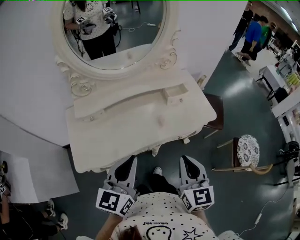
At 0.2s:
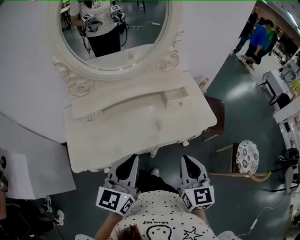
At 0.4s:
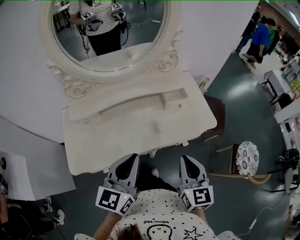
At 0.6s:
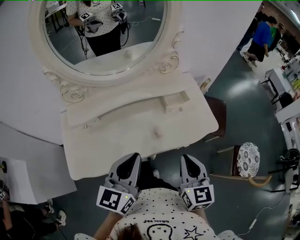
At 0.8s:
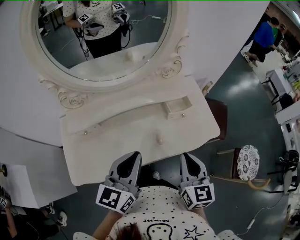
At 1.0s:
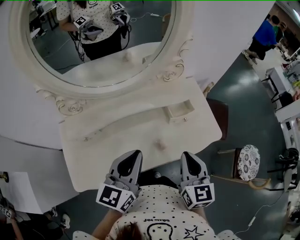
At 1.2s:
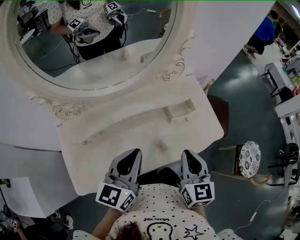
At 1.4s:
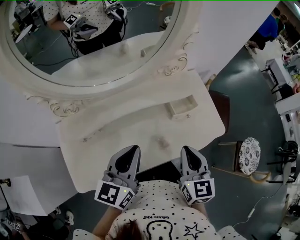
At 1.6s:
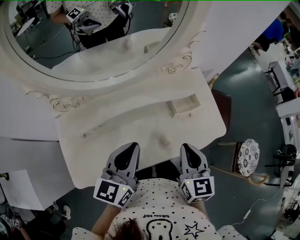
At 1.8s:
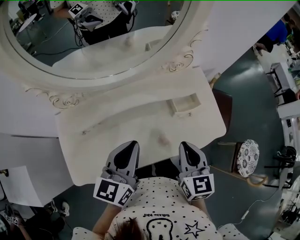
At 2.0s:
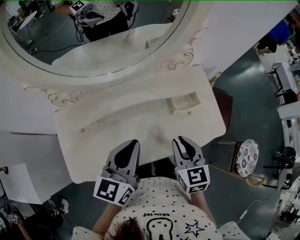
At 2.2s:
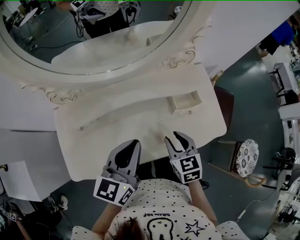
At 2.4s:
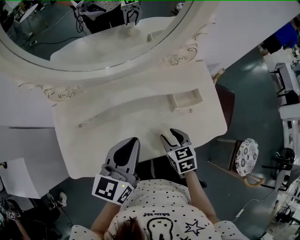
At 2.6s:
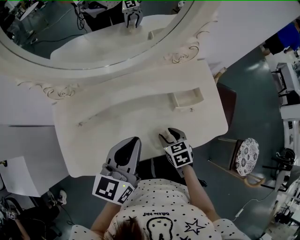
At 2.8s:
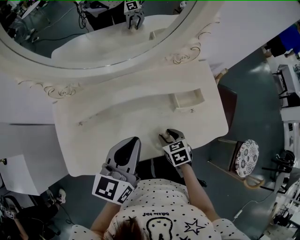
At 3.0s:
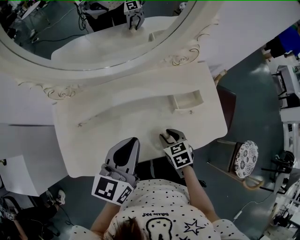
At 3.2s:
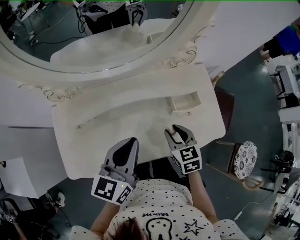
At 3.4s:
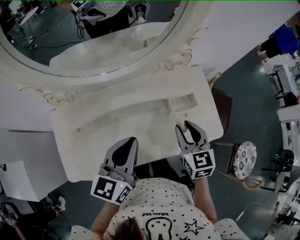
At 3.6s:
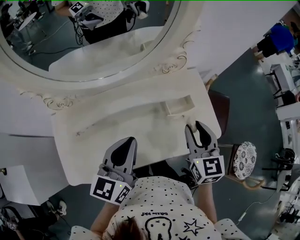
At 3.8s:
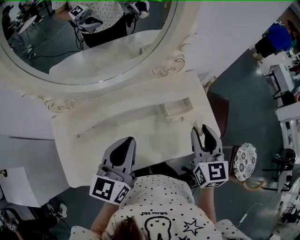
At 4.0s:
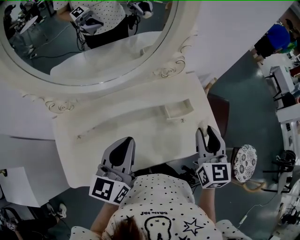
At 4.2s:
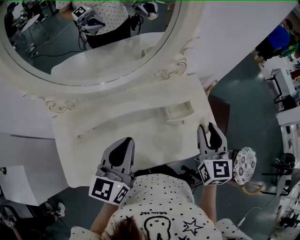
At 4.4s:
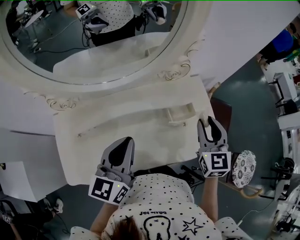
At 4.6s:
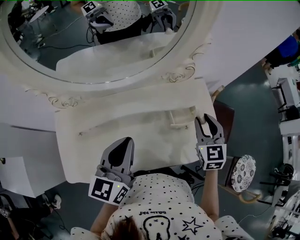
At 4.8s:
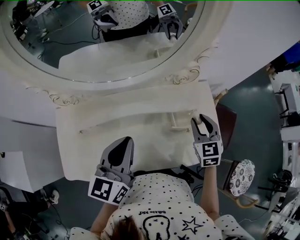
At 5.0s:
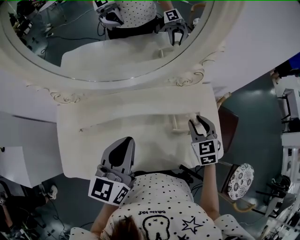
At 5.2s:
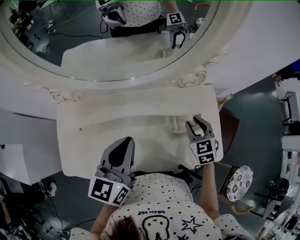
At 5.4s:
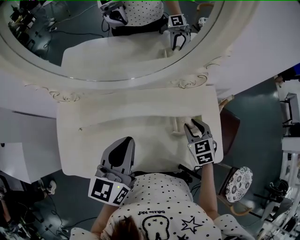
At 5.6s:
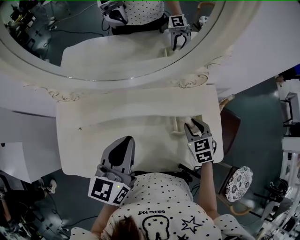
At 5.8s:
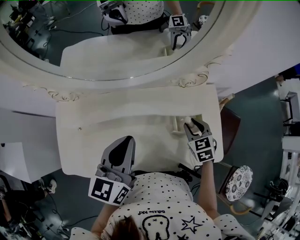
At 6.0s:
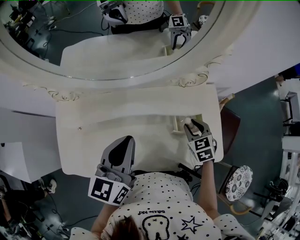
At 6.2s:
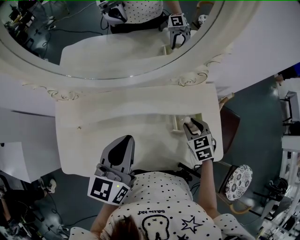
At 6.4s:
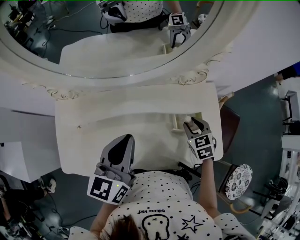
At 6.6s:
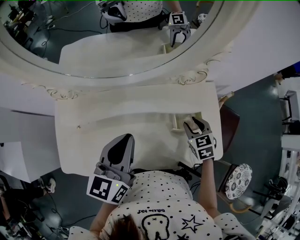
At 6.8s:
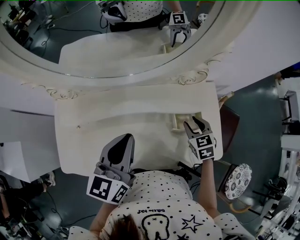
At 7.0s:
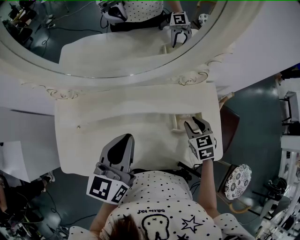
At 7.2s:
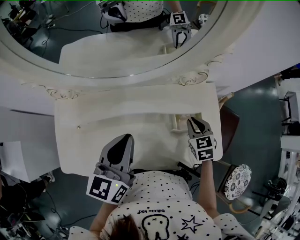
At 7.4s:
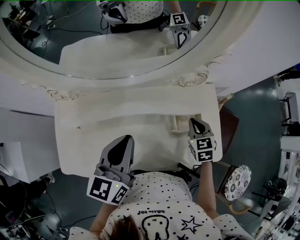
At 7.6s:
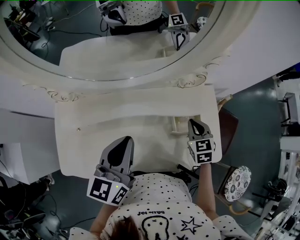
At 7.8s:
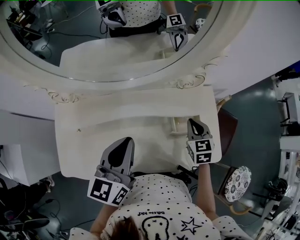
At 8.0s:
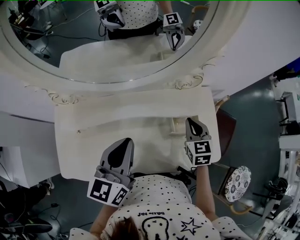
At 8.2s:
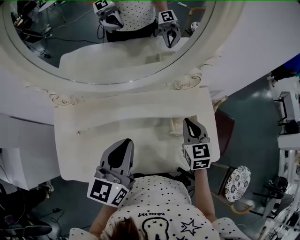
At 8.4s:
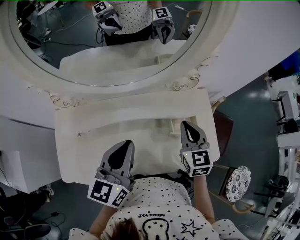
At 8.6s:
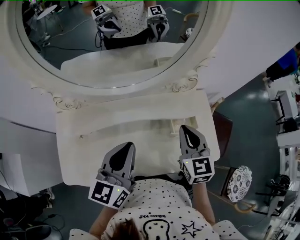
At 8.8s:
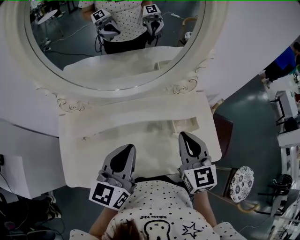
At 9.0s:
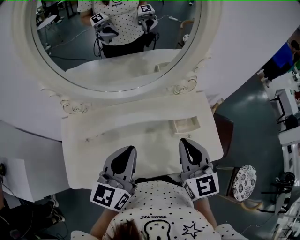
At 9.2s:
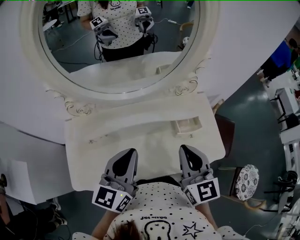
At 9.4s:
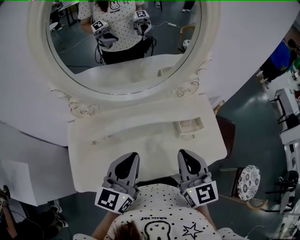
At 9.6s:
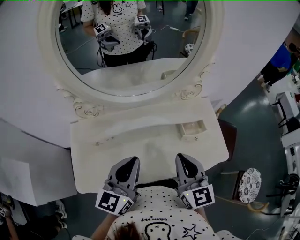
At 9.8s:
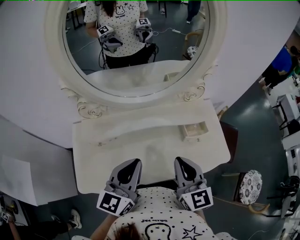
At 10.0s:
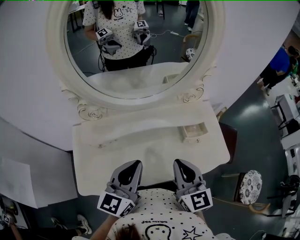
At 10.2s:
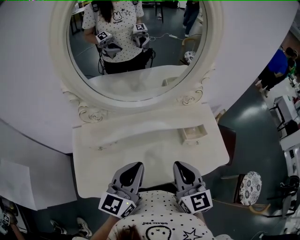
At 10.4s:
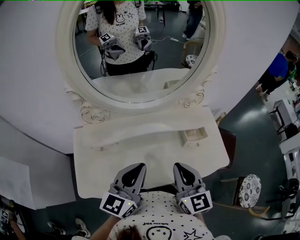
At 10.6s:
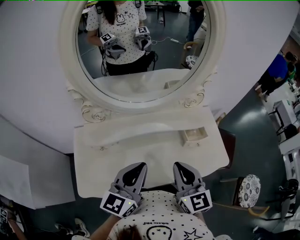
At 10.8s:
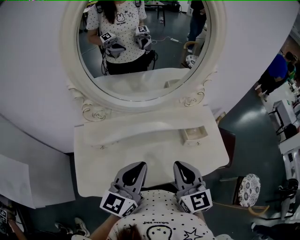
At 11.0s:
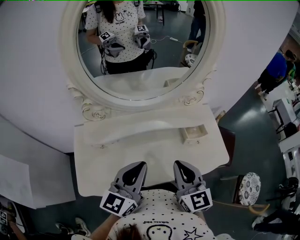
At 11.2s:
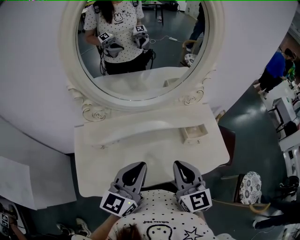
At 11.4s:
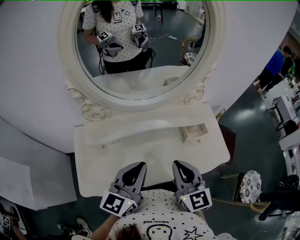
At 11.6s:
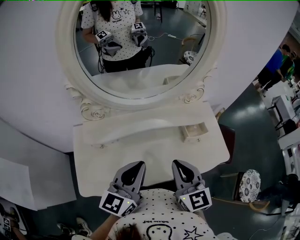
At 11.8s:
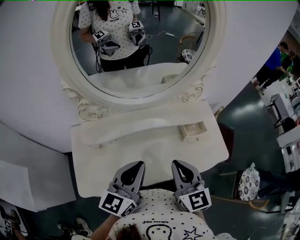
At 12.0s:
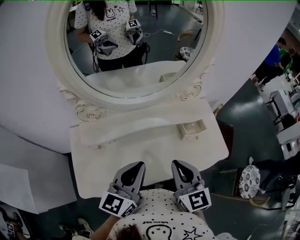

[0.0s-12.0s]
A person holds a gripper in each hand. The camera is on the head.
0.0s to 1.6s: The two grippers go approximately 20 cm forward.
1.6s to 3.0s: The right gripper is displaced downward by some 20 cm, swivels approximately 40 degrees, and opens.
3.0s to 4.4s: The right gripper goes some 25 cm upward, to the right and forward, and tips its fingers upward by about 30 degrees.
4.4s to 6.0s: The right gripper is displaced downward by some 20 cm, and swivels some 40 degrees.
6.0s to 7.6s: The right gripper closes up.
7.6s to 9.0s: The right gripper shifts some 25 cm upward, backward and to the left, and swivels about 30 degrees. The left gripper heads backward, covering approximately 5 cm.
9.0s to 10.4s: The left gripper shifts roughly 5 cm backward, while the right gripper shifts roughly 10 cm backward and to the left.
10.4s to 12.0s: The grippers stay close to where they were, moving slightly.

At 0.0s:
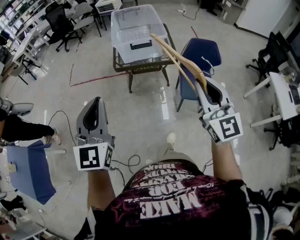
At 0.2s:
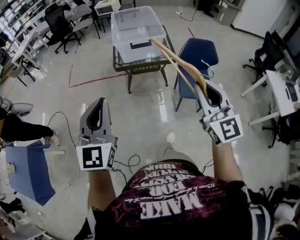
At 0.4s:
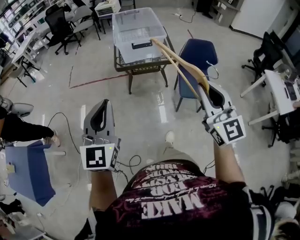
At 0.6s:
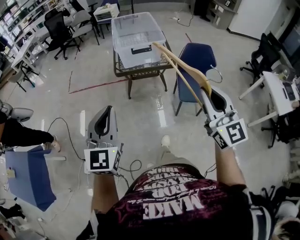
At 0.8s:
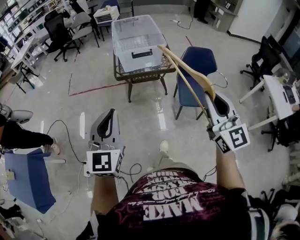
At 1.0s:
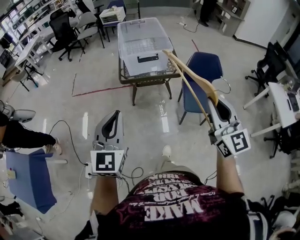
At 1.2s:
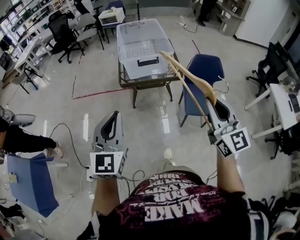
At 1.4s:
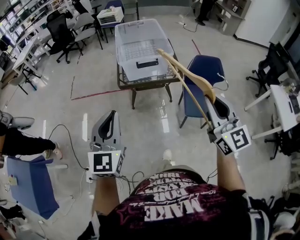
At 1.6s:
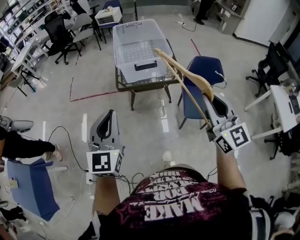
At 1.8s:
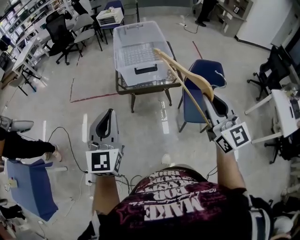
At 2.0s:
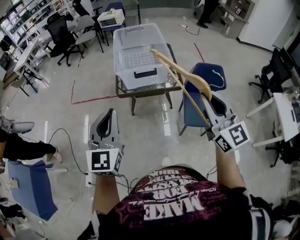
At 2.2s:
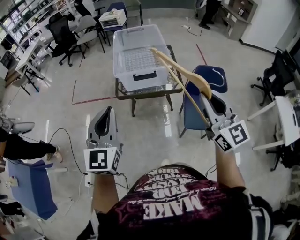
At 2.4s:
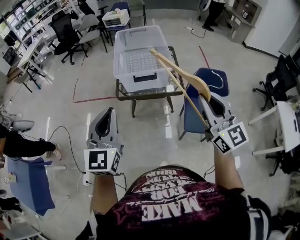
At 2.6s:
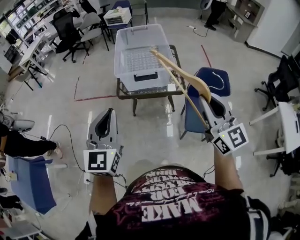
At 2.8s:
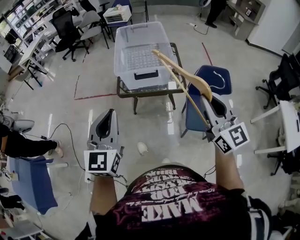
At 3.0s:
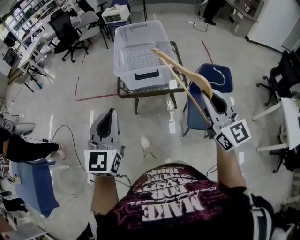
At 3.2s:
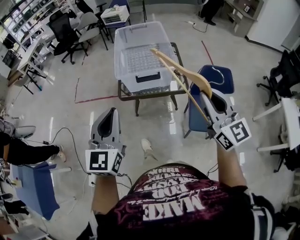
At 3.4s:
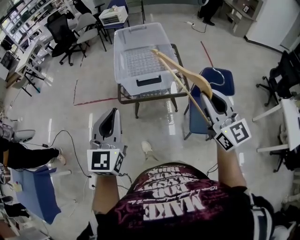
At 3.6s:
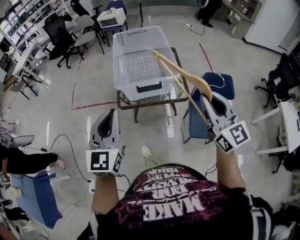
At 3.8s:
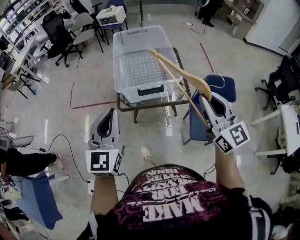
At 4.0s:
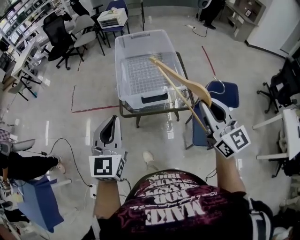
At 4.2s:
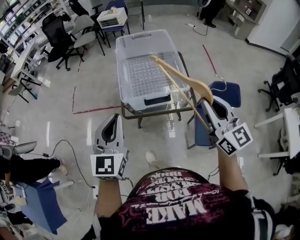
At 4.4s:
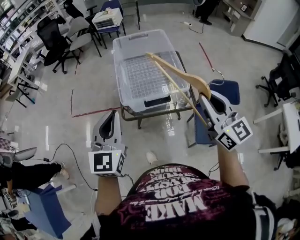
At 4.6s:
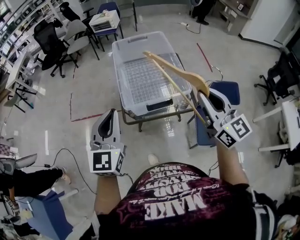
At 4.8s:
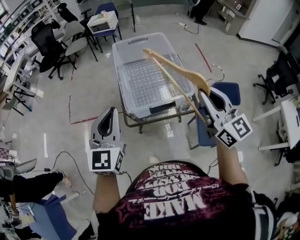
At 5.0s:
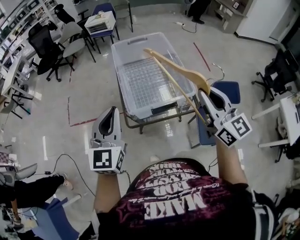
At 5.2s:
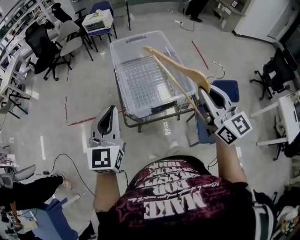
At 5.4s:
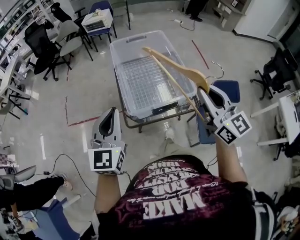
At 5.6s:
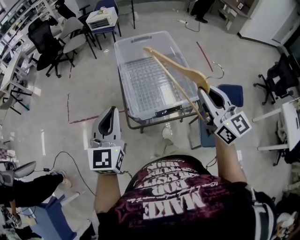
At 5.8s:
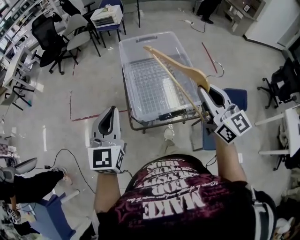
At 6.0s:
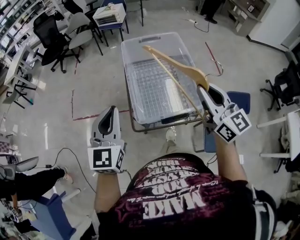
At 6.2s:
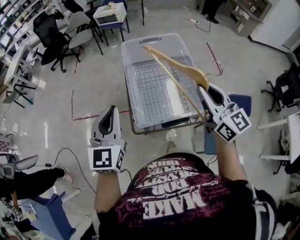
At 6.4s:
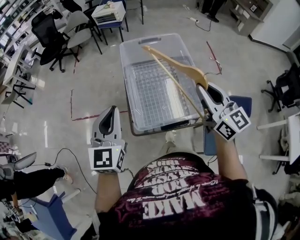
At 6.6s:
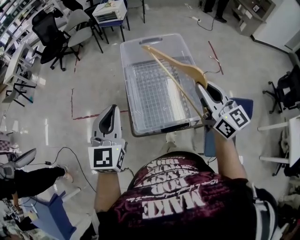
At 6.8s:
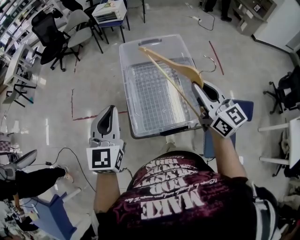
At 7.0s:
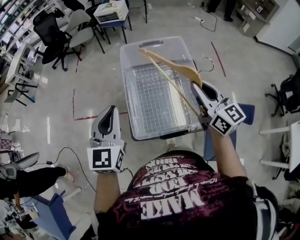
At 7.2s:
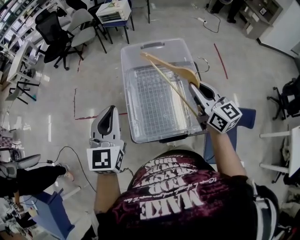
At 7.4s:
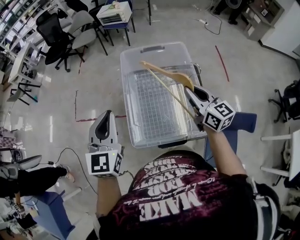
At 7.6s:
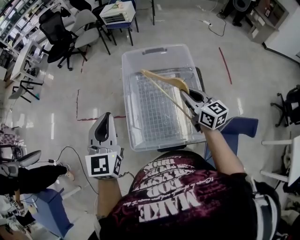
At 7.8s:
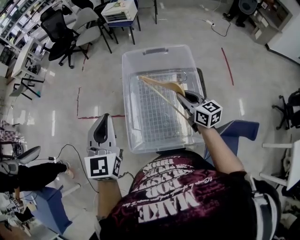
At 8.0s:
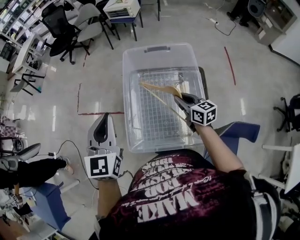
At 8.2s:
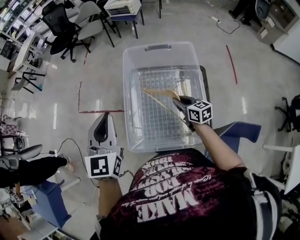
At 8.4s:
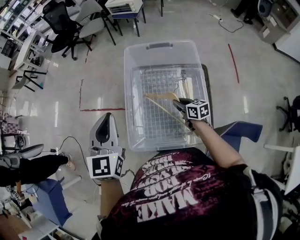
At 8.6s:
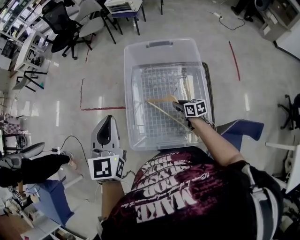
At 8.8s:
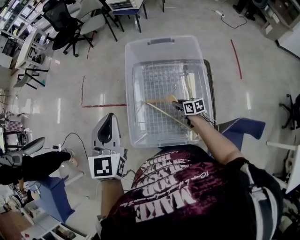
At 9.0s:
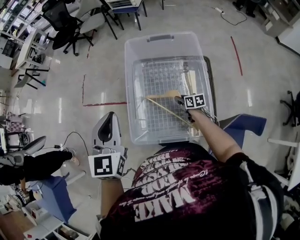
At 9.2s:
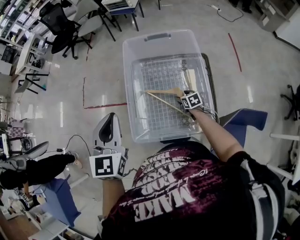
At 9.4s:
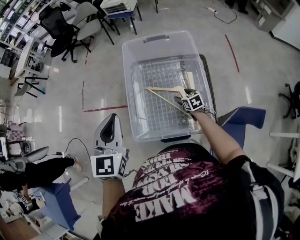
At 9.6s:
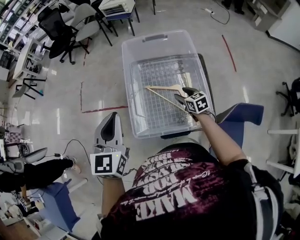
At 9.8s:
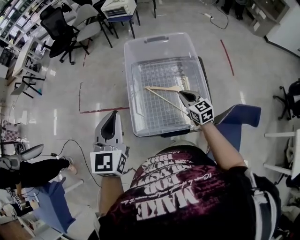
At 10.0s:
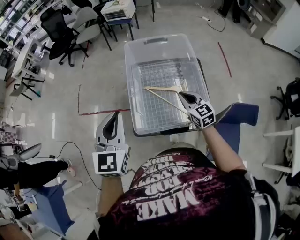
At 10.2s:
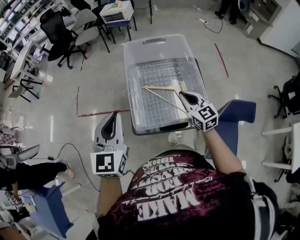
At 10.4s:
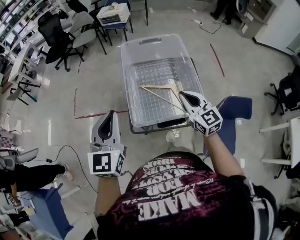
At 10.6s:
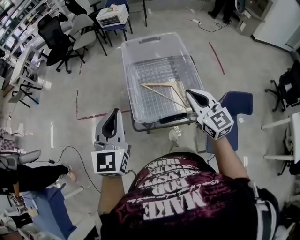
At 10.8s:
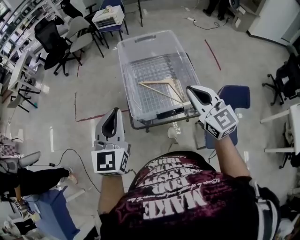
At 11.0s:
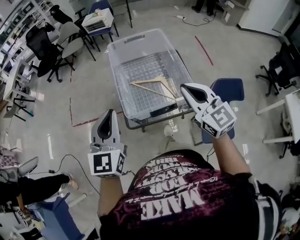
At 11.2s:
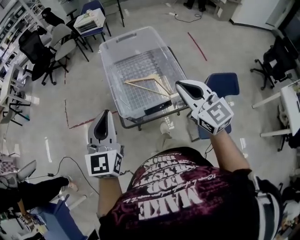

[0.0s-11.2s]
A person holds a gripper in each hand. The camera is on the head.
0.0s to 1.6s: Both grippers move forward, roughly 10 cm.
1.6s to 3.2s: The right gripper heads forward, covering some 15 cm; the left gripper shifts some 10 cm forward and to the right.
3.2s to 4.8s: The grippers both shift forward by about 25 cm.
4.8s to 6.4s: Both grippers move forward, roughly 15 cm.
6.4s to 8.0s: The right gripper is displaced downward and forward by some 30 cm, and turns by about 30 degrees, while the left gripper moves forward, about 10 cm.
8.0s to 9.6s: The left gripper goes some 5 cm backward. Meanwhile the right gripper travels downward by about 10 cm, and opens its fingers.
9.6s to 11.2s: The left gripper travels backward by roughly 15 cm. Meanwhile the right gripper shifts some 40 cm upward and backward, angles its fingers upward, by roughly 30 degrees, and closes up.

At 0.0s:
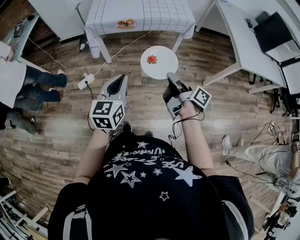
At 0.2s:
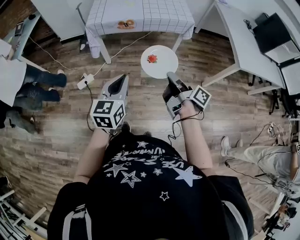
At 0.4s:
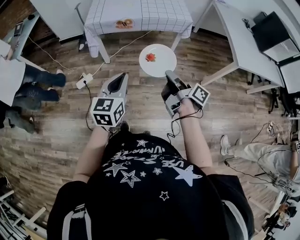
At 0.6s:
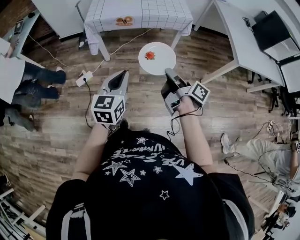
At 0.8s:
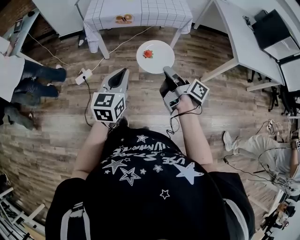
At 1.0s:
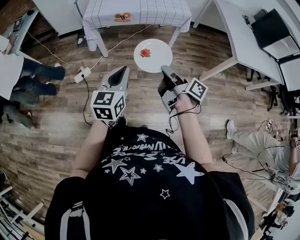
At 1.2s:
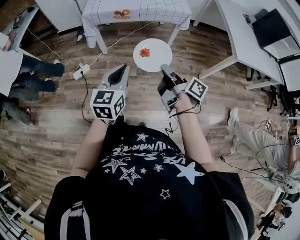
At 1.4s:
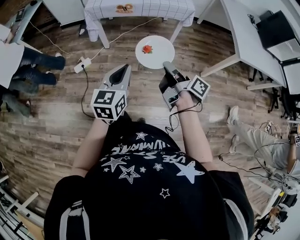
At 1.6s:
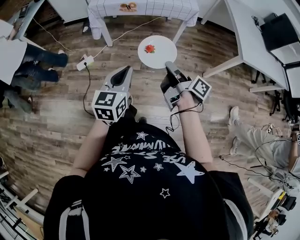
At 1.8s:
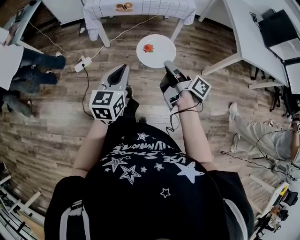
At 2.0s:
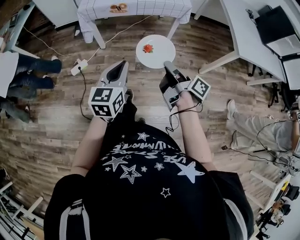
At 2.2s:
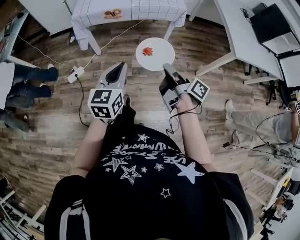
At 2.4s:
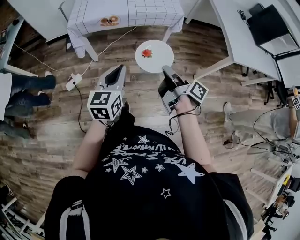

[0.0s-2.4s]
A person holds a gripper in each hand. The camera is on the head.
0.0s to 1.2s: The left gripper shifts by roughly 5 cm.
1.2s to 2.4s: The left gripper shifts by some 10 cm.
